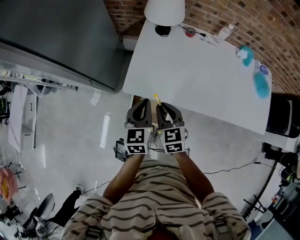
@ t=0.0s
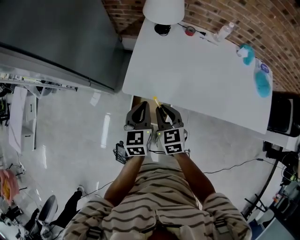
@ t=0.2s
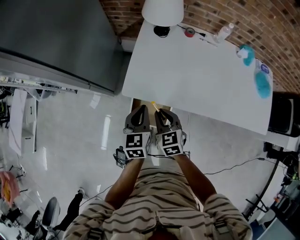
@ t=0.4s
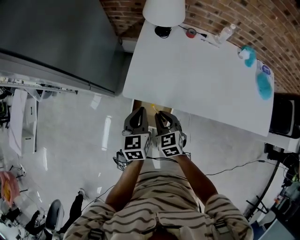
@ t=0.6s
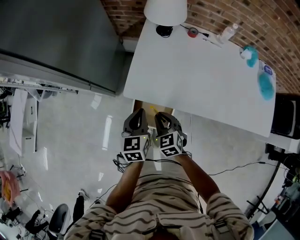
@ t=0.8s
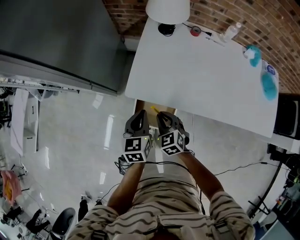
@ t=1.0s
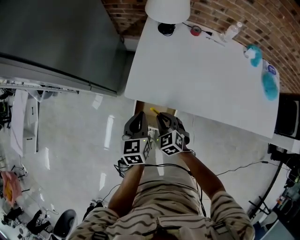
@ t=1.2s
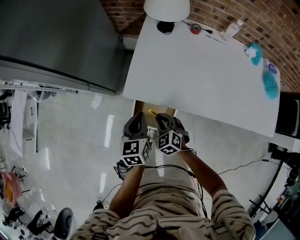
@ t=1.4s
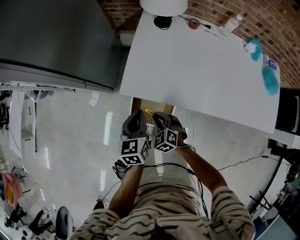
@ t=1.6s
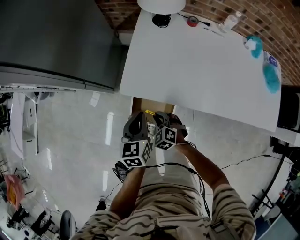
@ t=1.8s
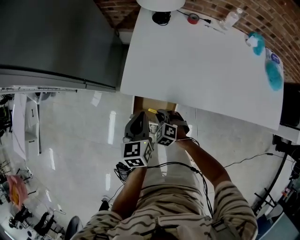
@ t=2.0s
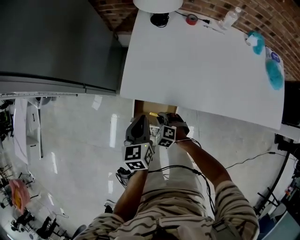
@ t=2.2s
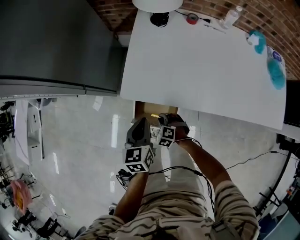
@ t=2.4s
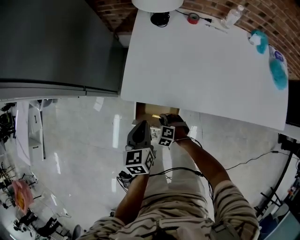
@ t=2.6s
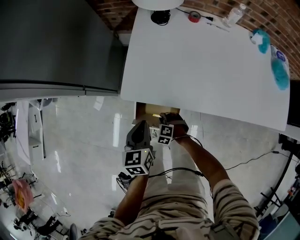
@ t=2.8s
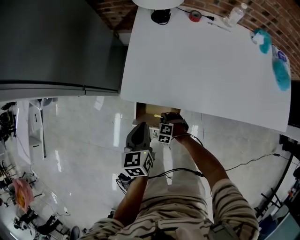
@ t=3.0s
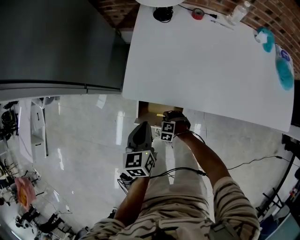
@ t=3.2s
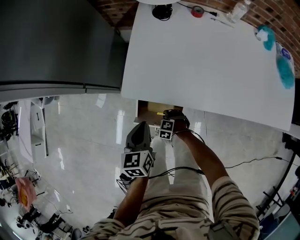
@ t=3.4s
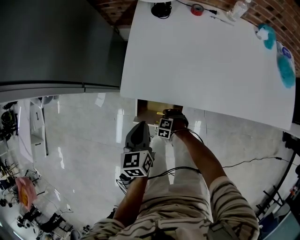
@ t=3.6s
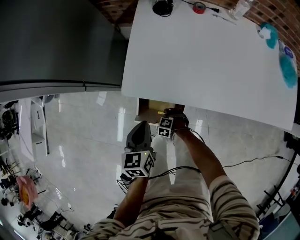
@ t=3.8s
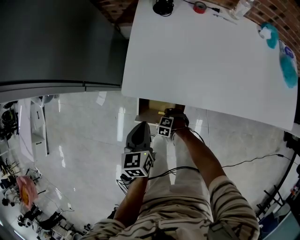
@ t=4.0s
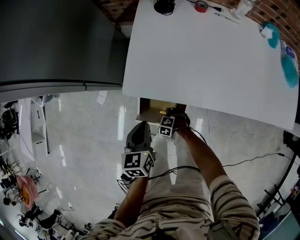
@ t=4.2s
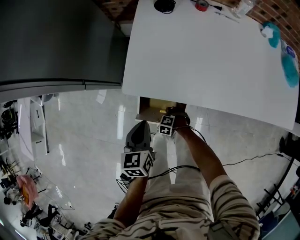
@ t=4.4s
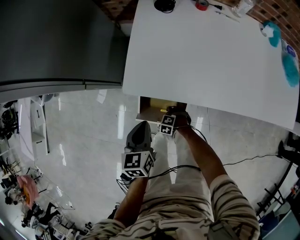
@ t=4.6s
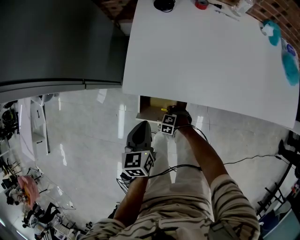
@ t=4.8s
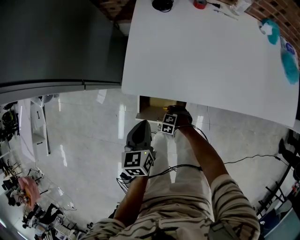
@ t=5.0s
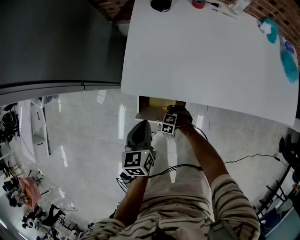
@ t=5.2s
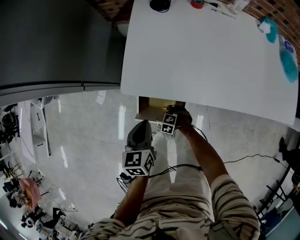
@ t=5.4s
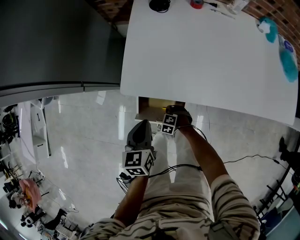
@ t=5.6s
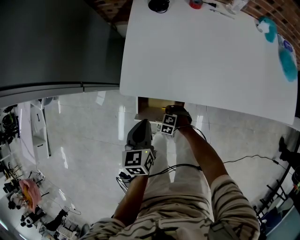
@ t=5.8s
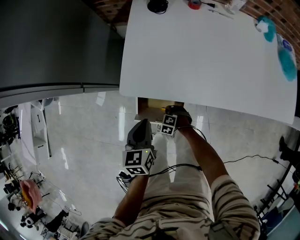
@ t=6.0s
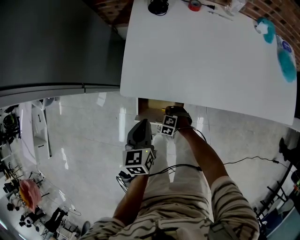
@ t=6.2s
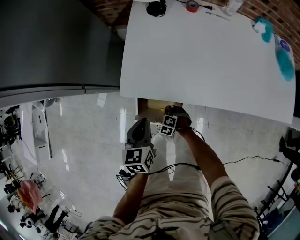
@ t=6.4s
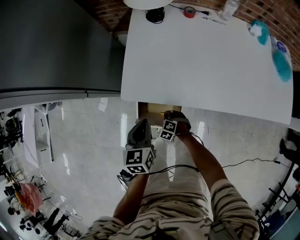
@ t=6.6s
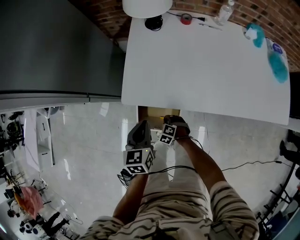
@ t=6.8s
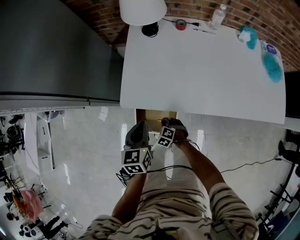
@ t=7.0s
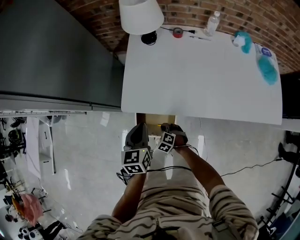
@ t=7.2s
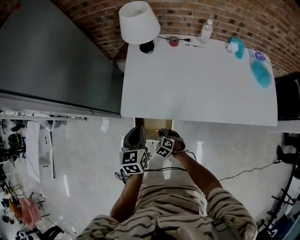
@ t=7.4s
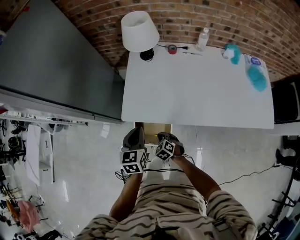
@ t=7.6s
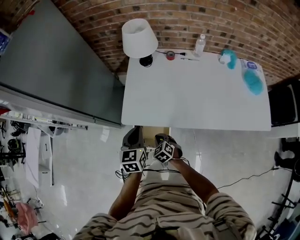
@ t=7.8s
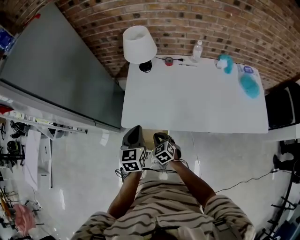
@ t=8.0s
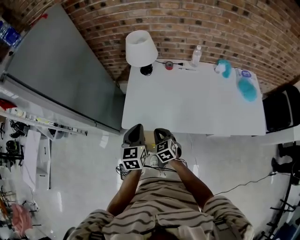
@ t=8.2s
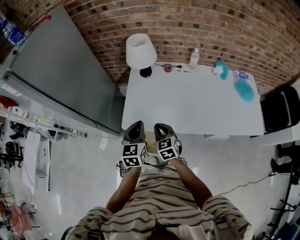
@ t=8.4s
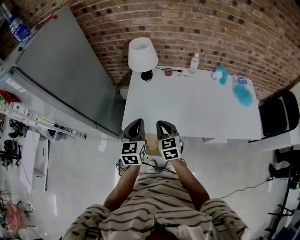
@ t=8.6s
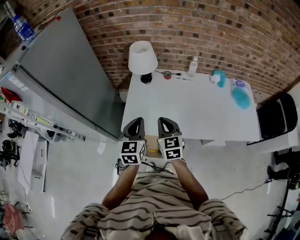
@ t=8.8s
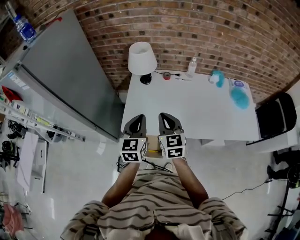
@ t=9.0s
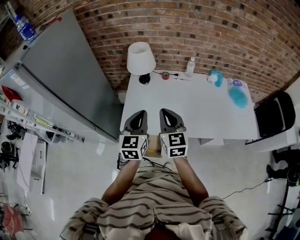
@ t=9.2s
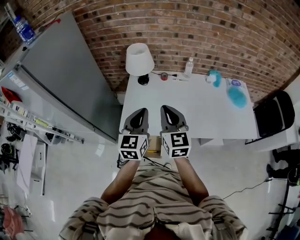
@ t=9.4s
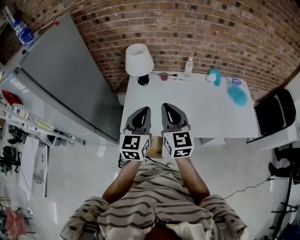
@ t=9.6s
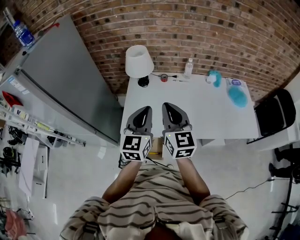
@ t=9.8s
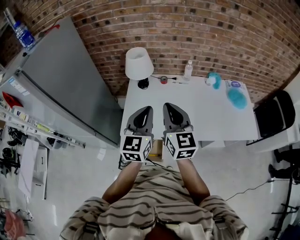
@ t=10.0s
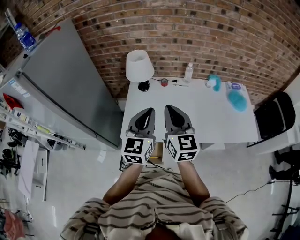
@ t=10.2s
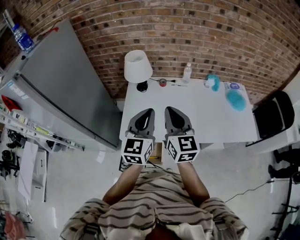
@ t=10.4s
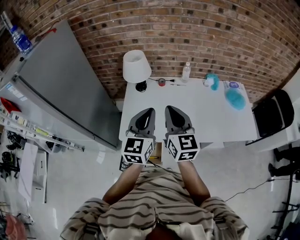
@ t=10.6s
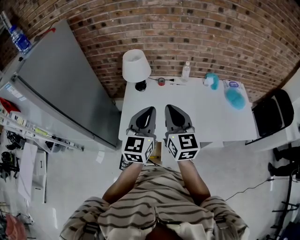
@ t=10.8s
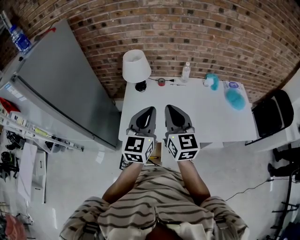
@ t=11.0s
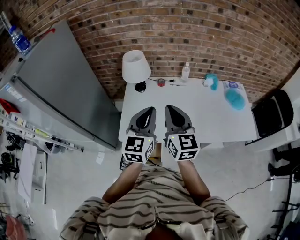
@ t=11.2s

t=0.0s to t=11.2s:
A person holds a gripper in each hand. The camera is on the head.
t=0.0s to t=1.6s: The right gripper shifts about 20 cm downward, and changes its angle by roughly 40 degrees, while the left gripper moves downward, about 10 cm.
t=1.6s to t=3.2s: The left gripper is displaced downward by some 5 cm. Meanwhile the right gripper goes approximately 25 cm downward, and swivels about 30 degrees.
t=3.2s to t=4.8s: The right gripper travels downward by roughly 5 cm.
t=4.8s to t=6.4s: The right gripper ends up some 5 cm from where it was.
t=6.4s to t=8.0s: The right gripper moves upward, some 30 cm, and changes its angle by some 50 degrees. The left gripper shifts roughly 20 cm upward.
t=8.0s to t=9.6s: The left gripper moves upward, about 20 cm, and swivels about 20 degrees. Meanwhile the right gripper travels upward by approximately 35 cm, and tilts its fingers roughly 40 degrees upward.
t=9.6s to t=11.2s: The grippers move only a little.

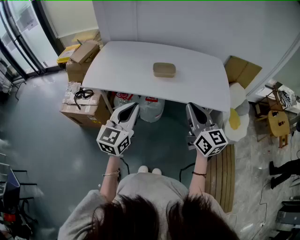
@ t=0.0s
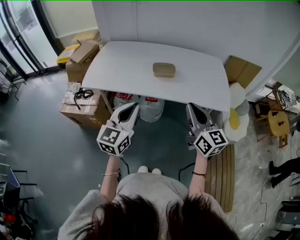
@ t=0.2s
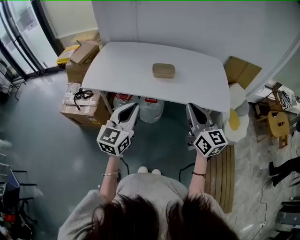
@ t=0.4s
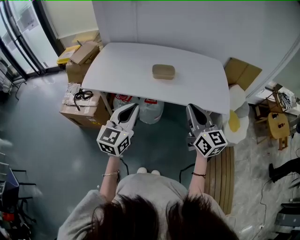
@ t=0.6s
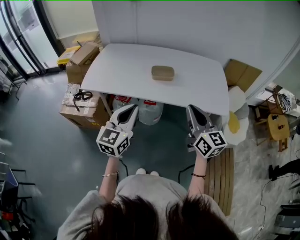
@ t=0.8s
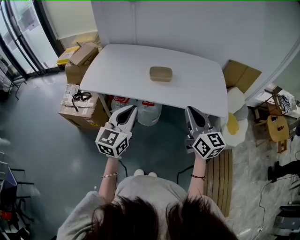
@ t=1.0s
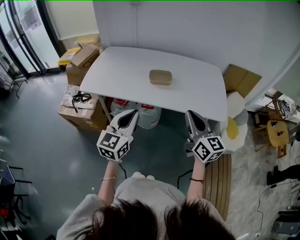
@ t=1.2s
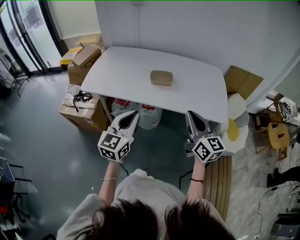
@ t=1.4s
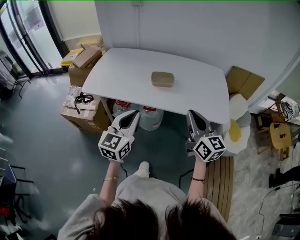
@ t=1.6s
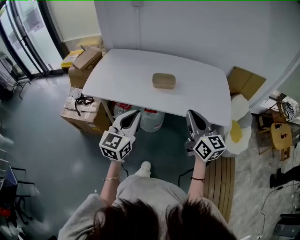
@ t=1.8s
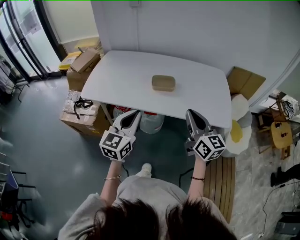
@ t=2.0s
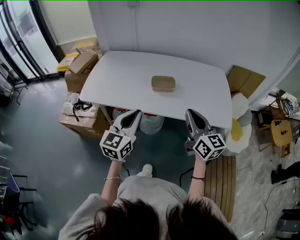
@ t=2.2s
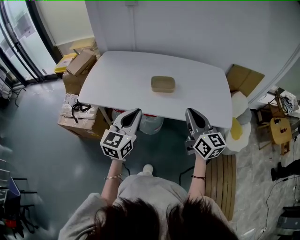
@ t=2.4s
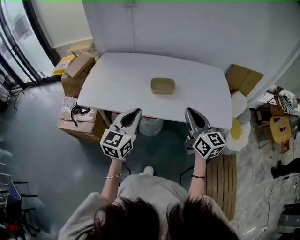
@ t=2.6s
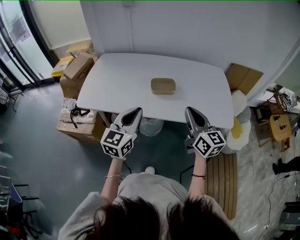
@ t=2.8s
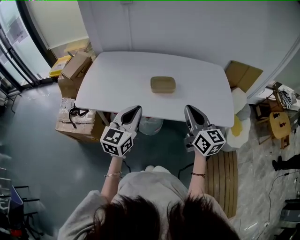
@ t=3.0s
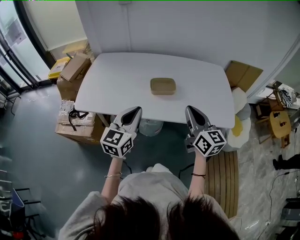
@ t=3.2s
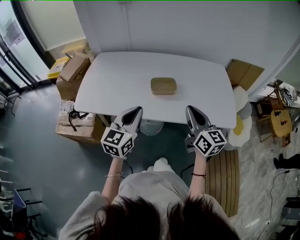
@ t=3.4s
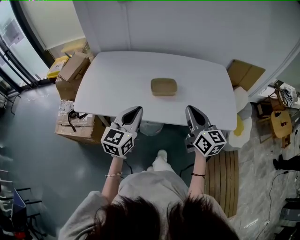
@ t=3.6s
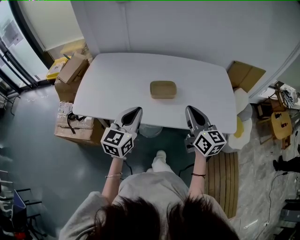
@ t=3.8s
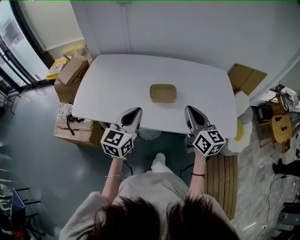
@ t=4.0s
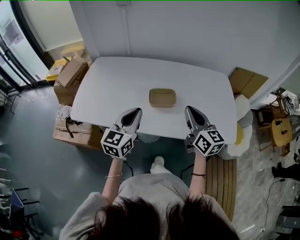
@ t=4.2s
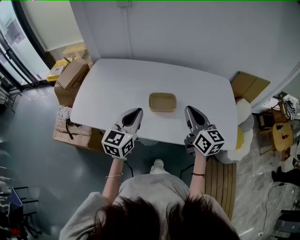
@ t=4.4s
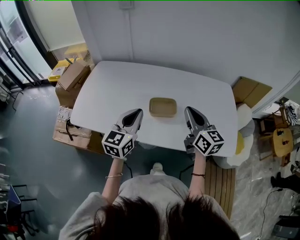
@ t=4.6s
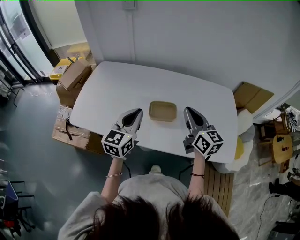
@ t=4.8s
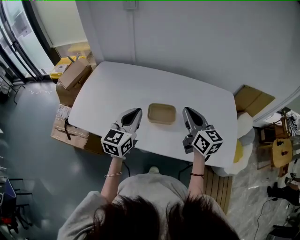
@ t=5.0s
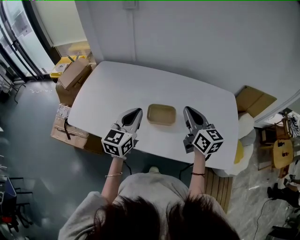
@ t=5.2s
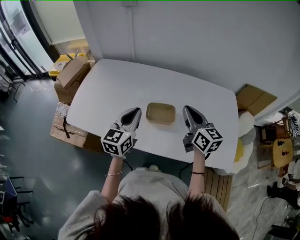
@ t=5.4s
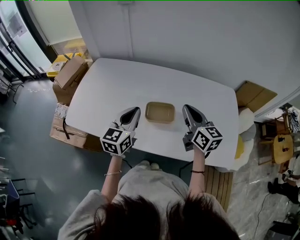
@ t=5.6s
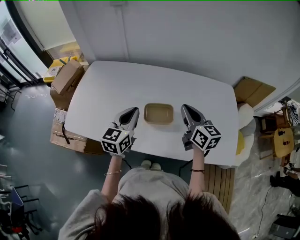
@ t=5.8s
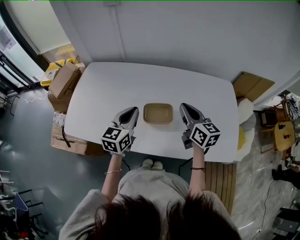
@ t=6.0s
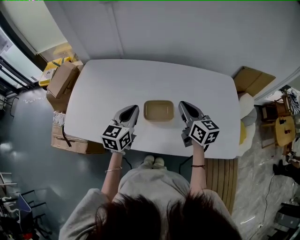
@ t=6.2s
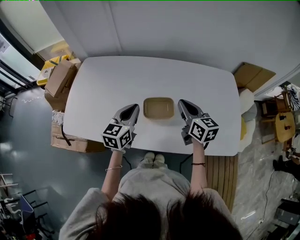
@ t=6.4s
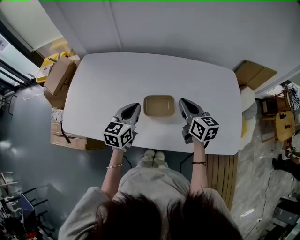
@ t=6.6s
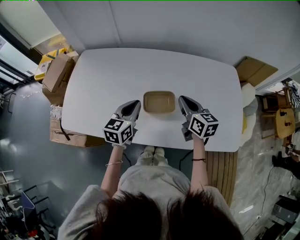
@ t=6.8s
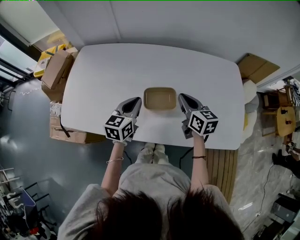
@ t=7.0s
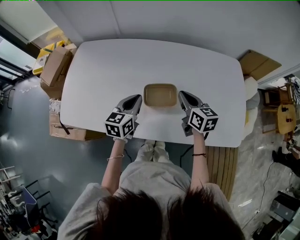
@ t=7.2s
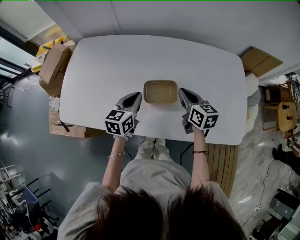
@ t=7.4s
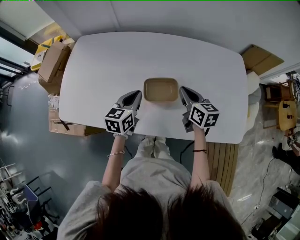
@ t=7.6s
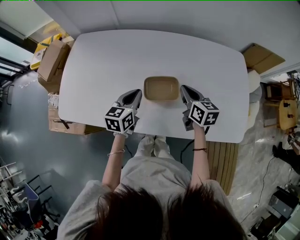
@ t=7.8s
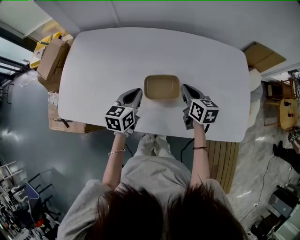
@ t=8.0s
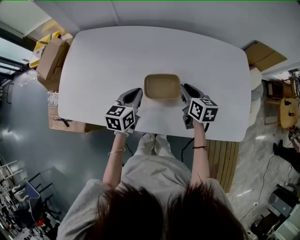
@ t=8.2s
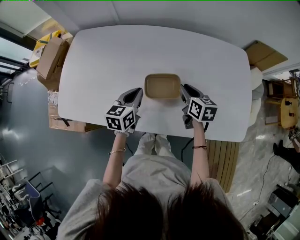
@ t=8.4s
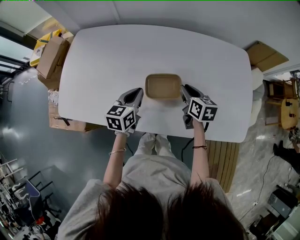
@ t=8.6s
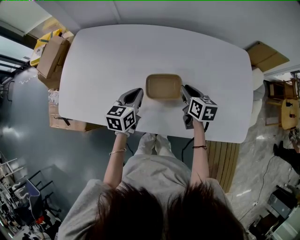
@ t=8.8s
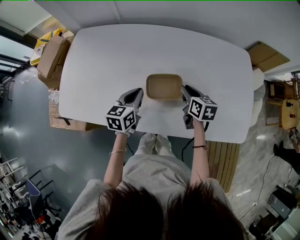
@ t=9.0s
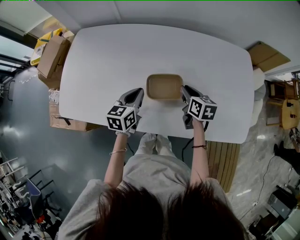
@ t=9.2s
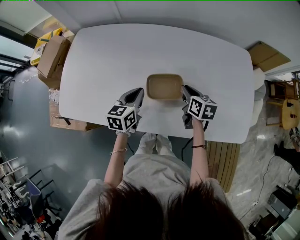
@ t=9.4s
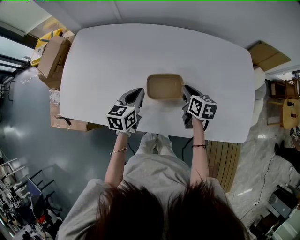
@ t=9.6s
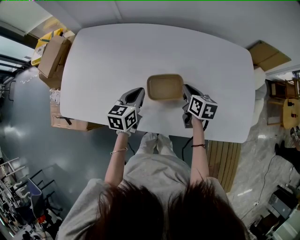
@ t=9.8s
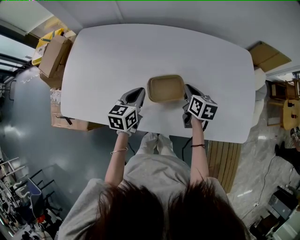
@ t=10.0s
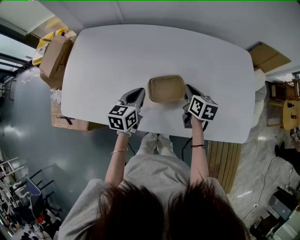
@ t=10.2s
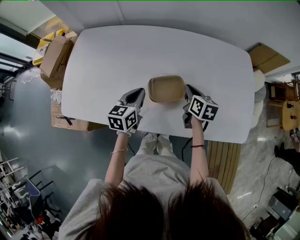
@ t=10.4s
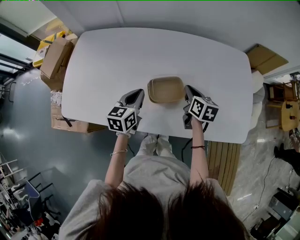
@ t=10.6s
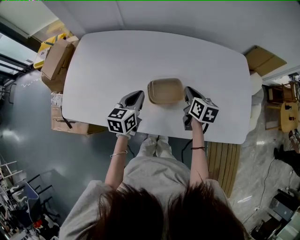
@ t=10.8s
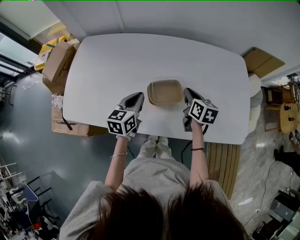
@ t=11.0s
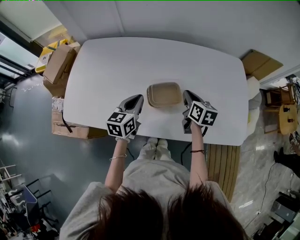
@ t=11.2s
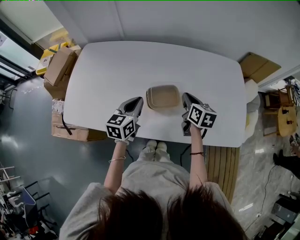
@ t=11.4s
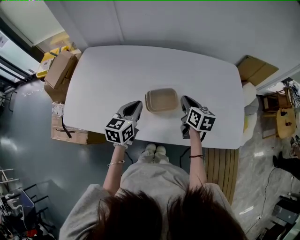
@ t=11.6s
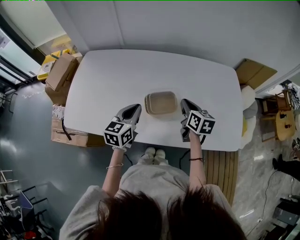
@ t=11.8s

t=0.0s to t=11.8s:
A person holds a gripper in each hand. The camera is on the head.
t=0.0s to t=1.4s: There are only small adjustments of the grippers.
t=1.4s to t=3.0s: Both grippers move forward, some 10 cm.
t=3.0s to t=4.4s: Both grippers travel together forward, about 15 cm.
t=4.4s to t=6.0s: The two grippers go approximately 10 cm forward.
t=6.0s to t=7.4s: The grippers both shift downward by approximately 10 cm.
t=7.4s to t=8.8s: The right gripper travels downward by roughly 5 cm, and opens its fingers.
t=8.8s to t=10.4s: The grippers make only small movements.
t=10.4s to t=11.8s: The two grippers go approximately 5 cm upward.

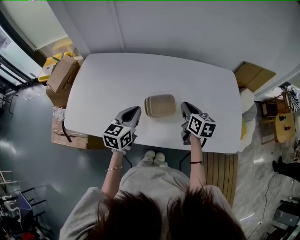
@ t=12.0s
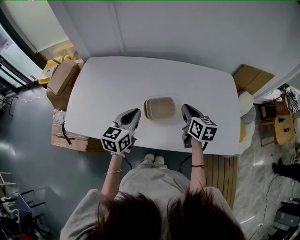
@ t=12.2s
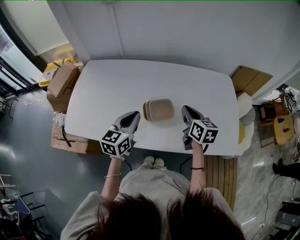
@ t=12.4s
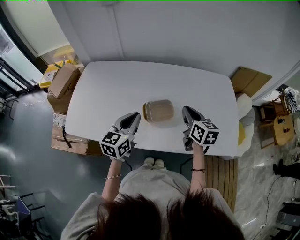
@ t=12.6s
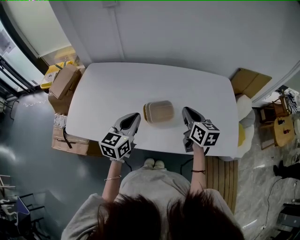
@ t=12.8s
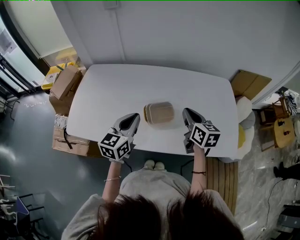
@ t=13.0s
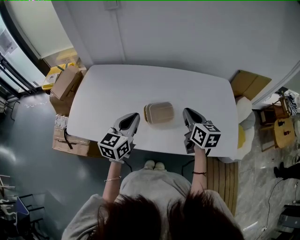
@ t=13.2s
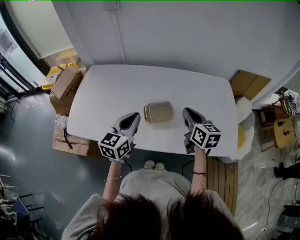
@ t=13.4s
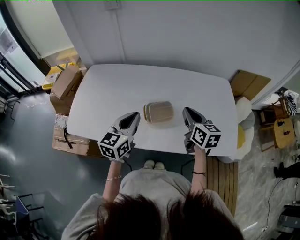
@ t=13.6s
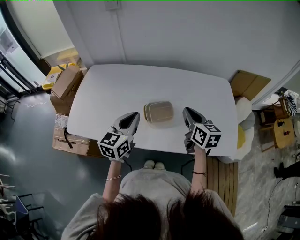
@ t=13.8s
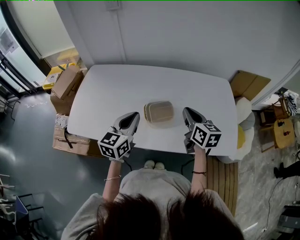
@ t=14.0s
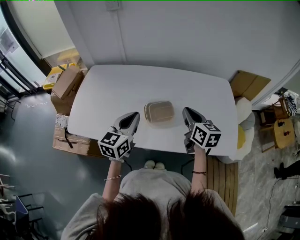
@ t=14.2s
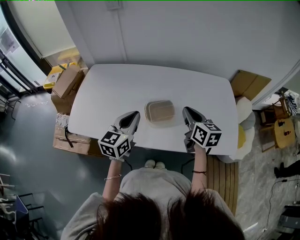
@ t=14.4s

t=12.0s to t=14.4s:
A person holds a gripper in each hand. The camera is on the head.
t=12.0s to t=13.2s: The two grippers go approximately 5 cm upward.
t=13.2s to t=14.4s: The grippers move only a little.
